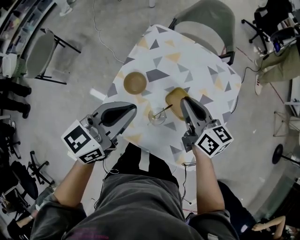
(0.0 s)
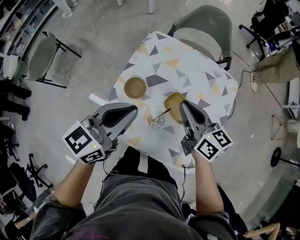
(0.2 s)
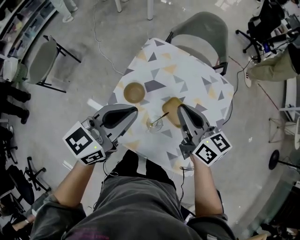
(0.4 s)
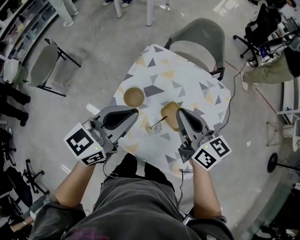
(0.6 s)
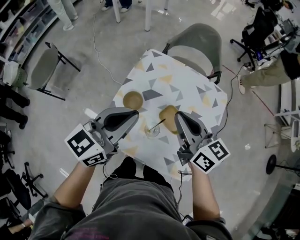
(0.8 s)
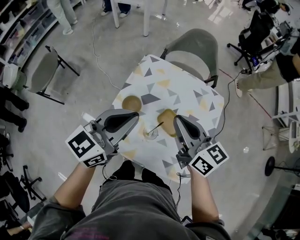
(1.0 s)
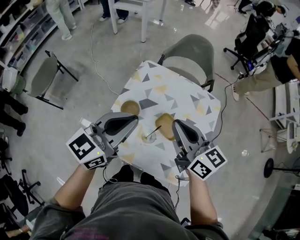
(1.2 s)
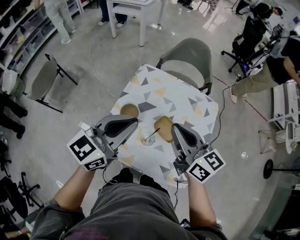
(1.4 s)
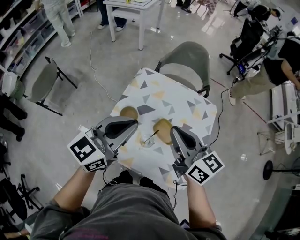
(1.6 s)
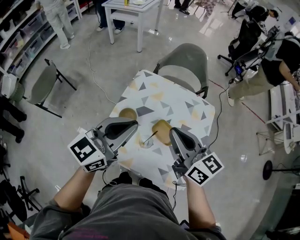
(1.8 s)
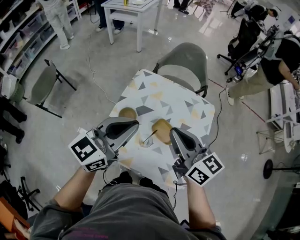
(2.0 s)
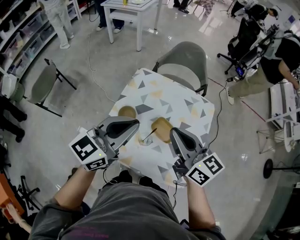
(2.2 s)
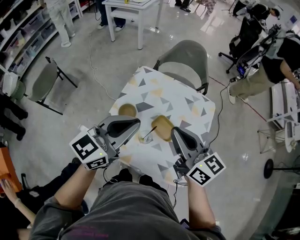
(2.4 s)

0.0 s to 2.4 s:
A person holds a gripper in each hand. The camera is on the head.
0.0 to 1.2 s: The two grippers go about 15 cm upward.
1.2 to 2.4 s: The right gripper moves about 5 cm.

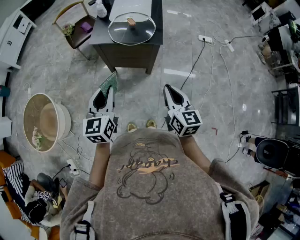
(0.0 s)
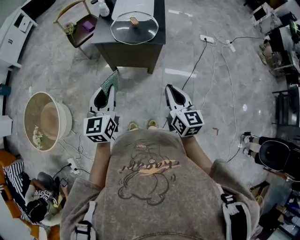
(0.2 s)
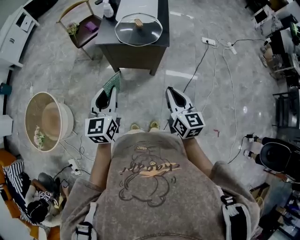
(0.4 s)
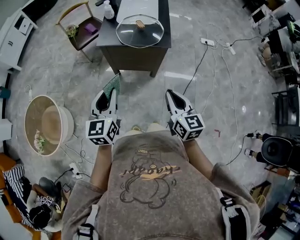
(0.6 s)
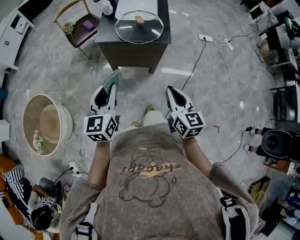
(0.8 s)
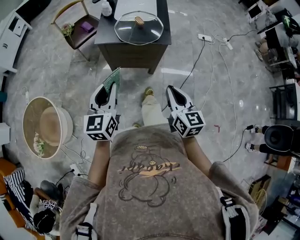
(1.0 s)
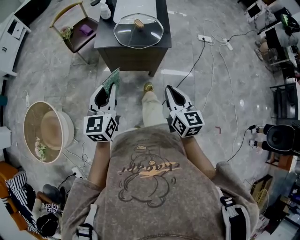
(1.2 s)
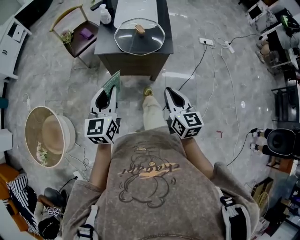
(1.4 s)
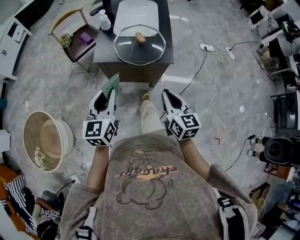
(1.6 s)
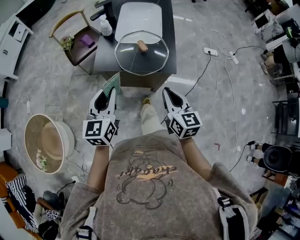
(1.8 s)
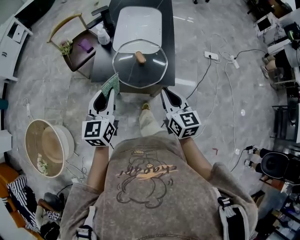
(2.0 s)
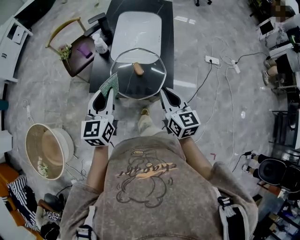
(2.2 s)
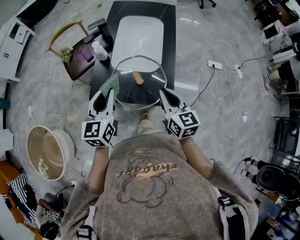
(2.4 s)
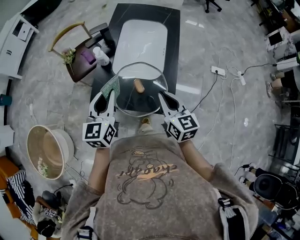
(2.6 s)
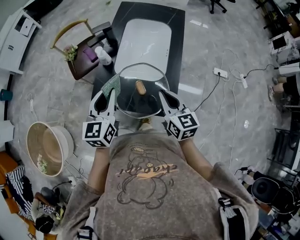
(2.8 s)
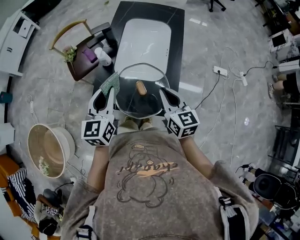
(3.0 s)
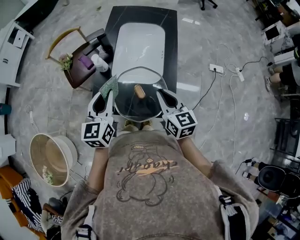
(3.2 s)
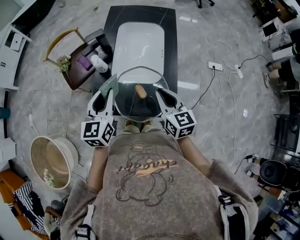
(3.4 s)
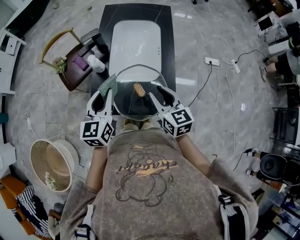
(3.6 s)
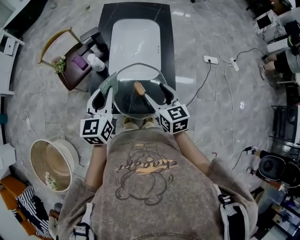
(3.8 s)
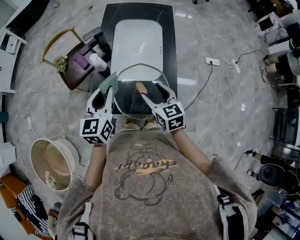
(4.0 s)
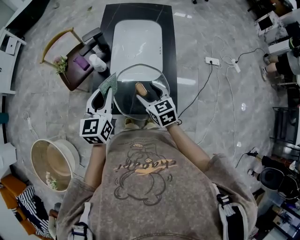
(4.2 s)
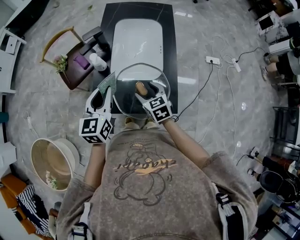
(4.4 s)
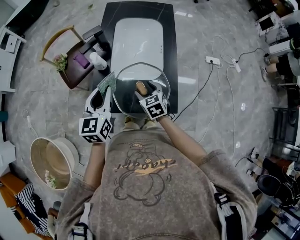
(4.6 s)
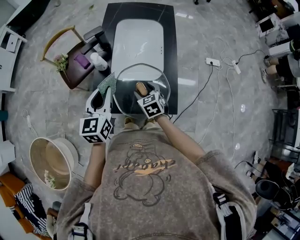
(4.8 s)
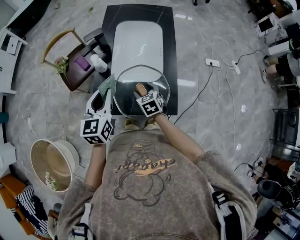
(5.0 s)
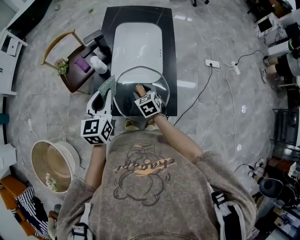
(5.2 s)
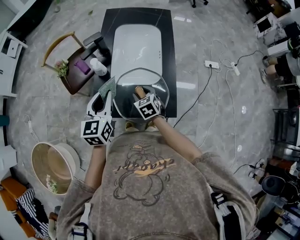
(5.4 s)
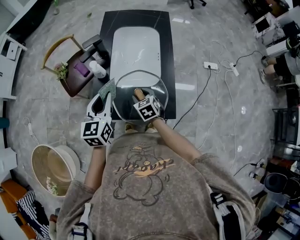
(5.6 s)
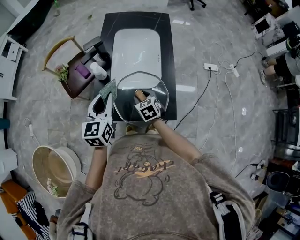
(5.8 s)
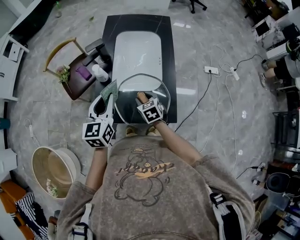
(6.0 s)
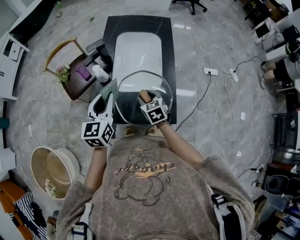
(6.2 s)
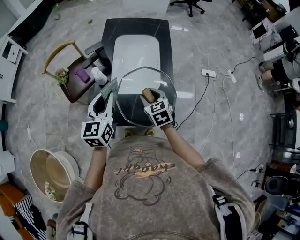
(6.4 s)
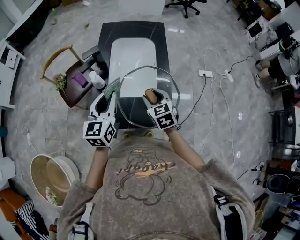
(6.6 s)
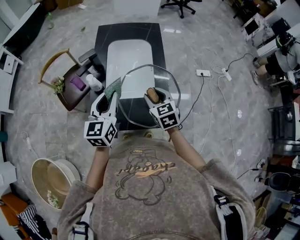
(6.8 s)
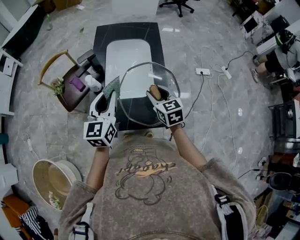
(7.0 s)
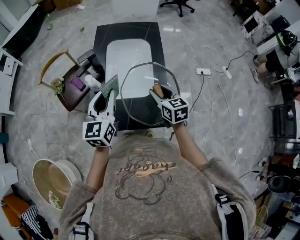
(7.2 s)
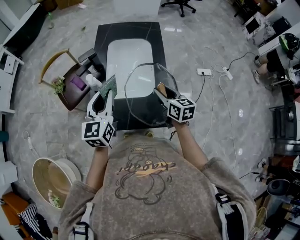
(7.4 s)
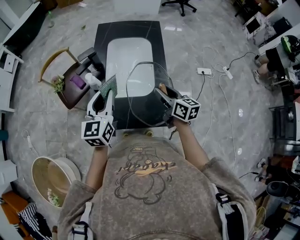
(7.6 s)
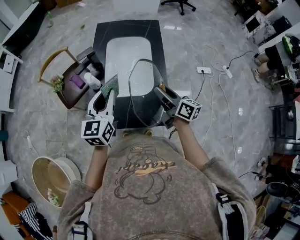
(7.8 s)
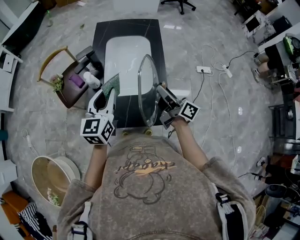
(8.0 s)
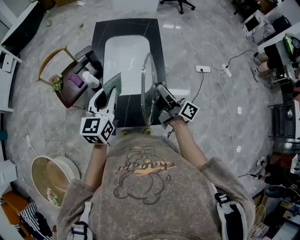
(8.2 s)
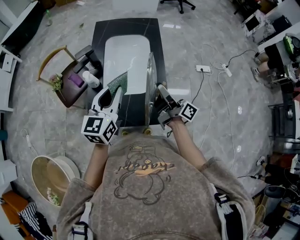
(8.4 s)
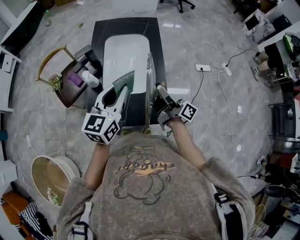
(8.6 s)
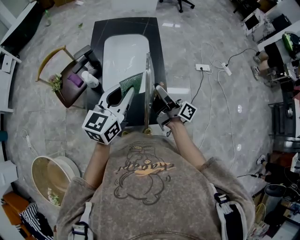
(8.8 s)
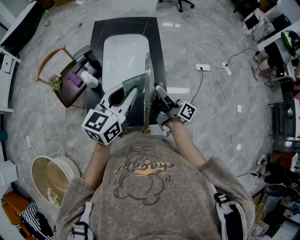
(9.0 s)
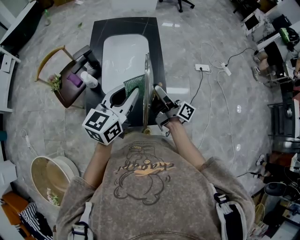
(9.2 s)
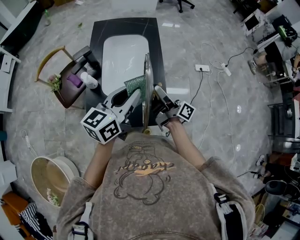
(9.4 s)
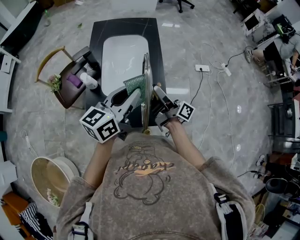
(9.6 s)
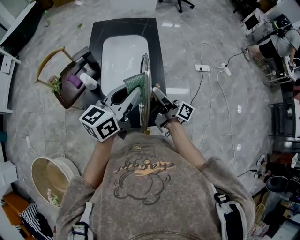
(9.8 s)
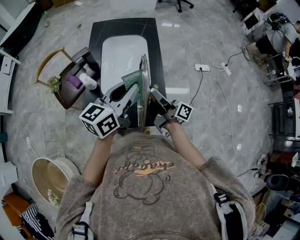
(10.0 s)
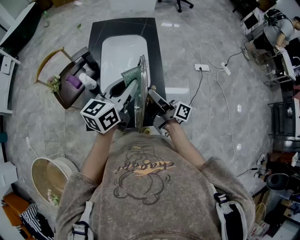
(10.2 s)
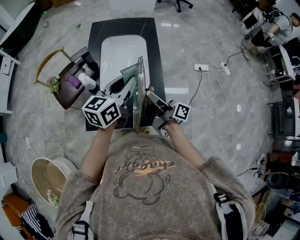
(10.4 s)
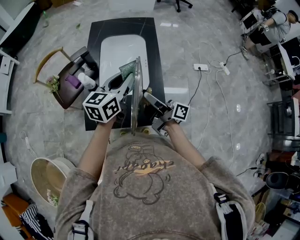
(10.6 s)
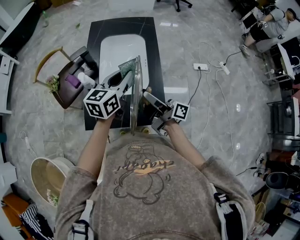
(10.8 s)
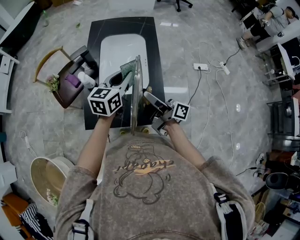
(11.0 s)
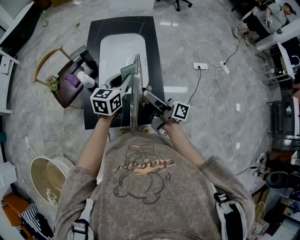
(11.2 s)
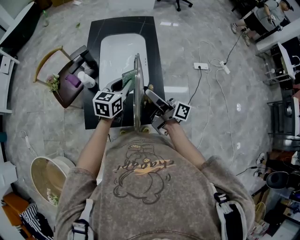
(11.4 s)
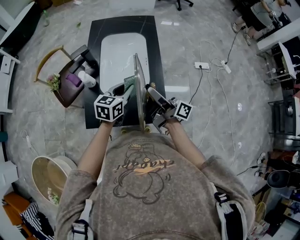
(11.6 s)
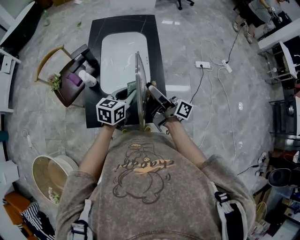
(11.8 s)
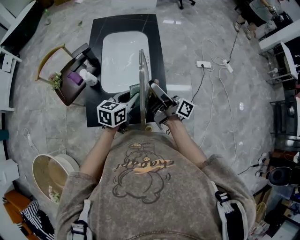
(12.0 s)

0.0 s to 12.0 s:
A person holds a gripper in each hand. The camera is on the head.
0.0 to 1.6 s: The left gripper heads forward, covering some 15 cm, while the right gripper is displaced forward and to the left by some 15 cm.
1.6 to 3.0 s: The two grippers go approximately 30 cm forward.
3.0 to 4.4 s: The right gripper heads downward and to the left, covering some 15 cm, rotates some 20 degrees, and opens up.
4.4 to 6.0 s: The right gripper changes place by approximately 5 cm, and closes.
6.0 to 7.6 s: The left gripper moves about 5 cm, while the right gripper shifts approximately 20 cm upward and to the right, and tips its fingers upward by approximately 30 degrees.
7.6 to 9.0 s: The left gripper shifts roughly 10 cm to the right, and swivels some 30 degrees. The right gripper tilts its fingers approximately 30 degrees upward.
9.0 to 10.4 s: The left gripper shifts roughly 5 cm forward.
10.4 to 12.0 s: The left gripper goes about 15 cm downward.

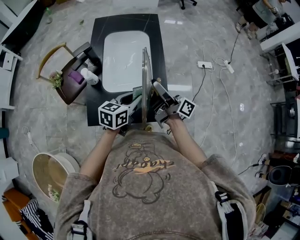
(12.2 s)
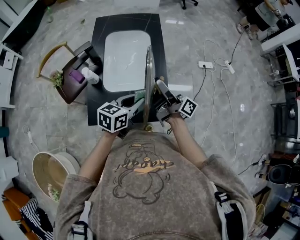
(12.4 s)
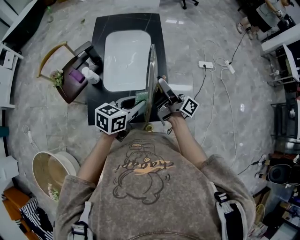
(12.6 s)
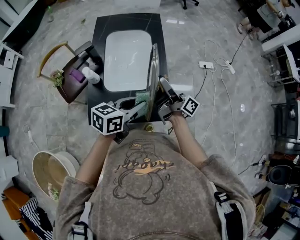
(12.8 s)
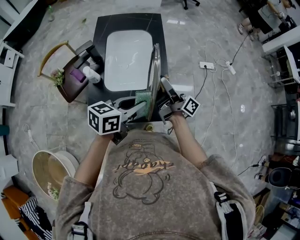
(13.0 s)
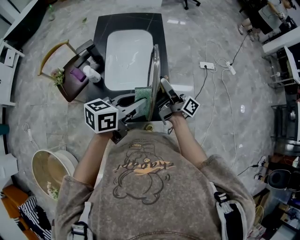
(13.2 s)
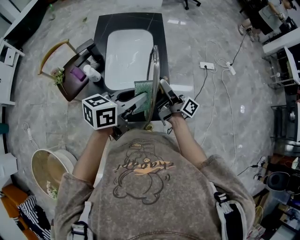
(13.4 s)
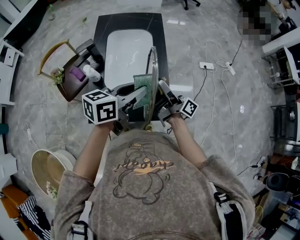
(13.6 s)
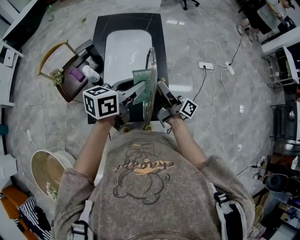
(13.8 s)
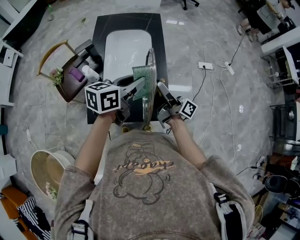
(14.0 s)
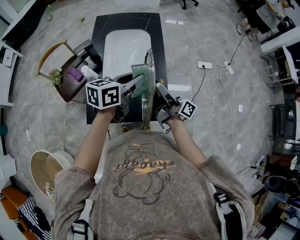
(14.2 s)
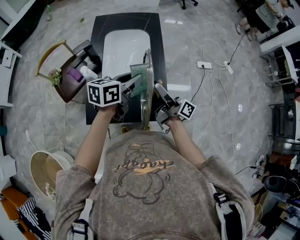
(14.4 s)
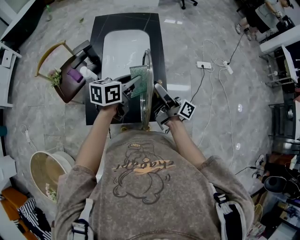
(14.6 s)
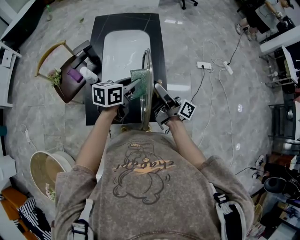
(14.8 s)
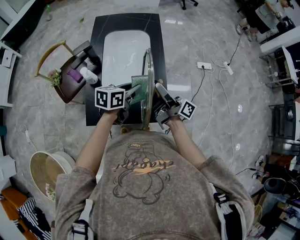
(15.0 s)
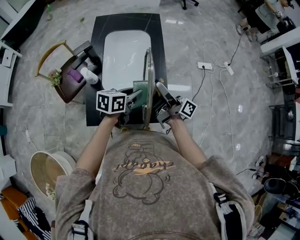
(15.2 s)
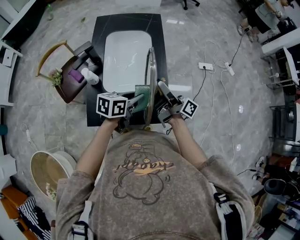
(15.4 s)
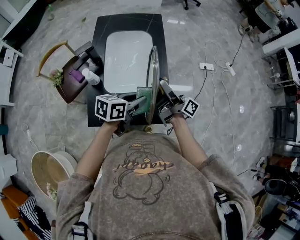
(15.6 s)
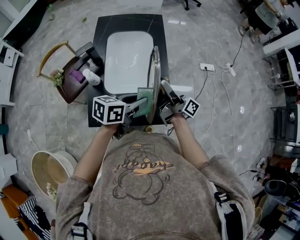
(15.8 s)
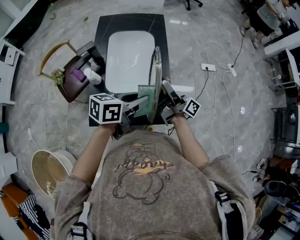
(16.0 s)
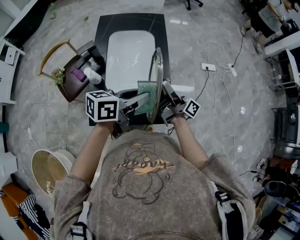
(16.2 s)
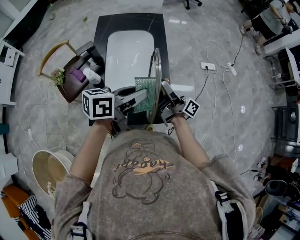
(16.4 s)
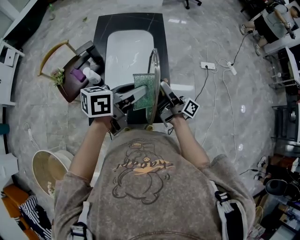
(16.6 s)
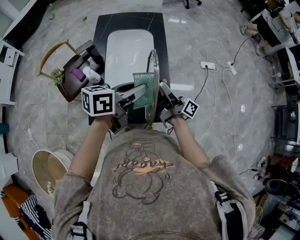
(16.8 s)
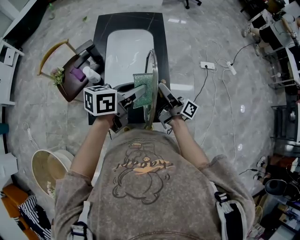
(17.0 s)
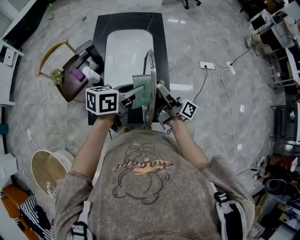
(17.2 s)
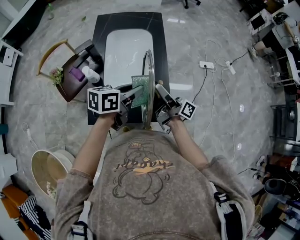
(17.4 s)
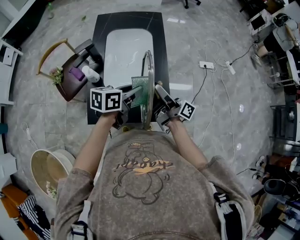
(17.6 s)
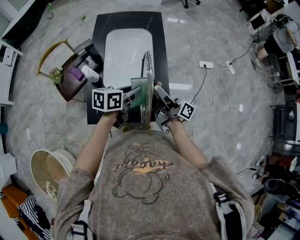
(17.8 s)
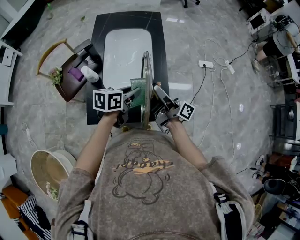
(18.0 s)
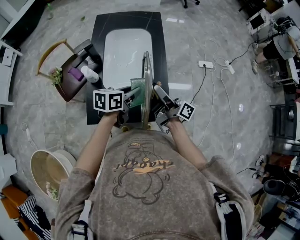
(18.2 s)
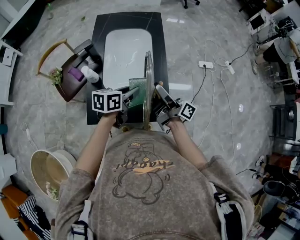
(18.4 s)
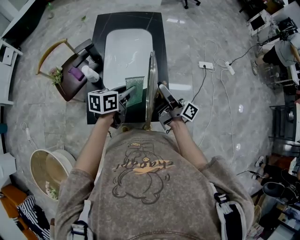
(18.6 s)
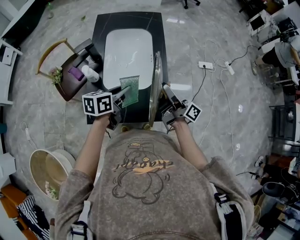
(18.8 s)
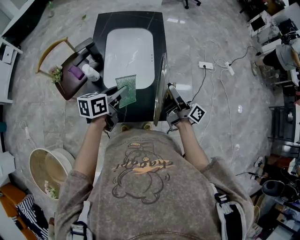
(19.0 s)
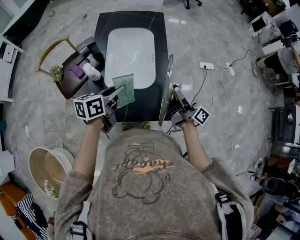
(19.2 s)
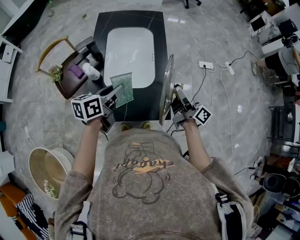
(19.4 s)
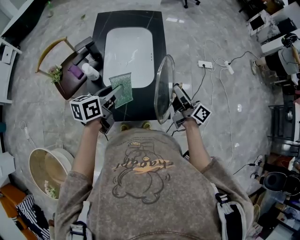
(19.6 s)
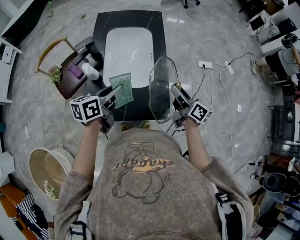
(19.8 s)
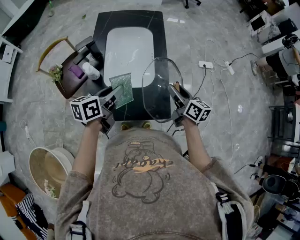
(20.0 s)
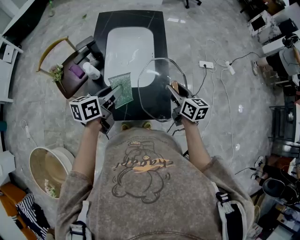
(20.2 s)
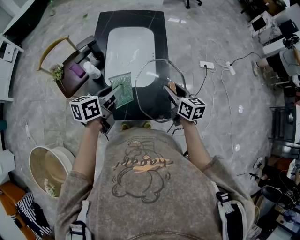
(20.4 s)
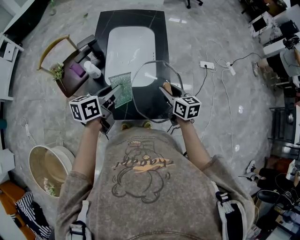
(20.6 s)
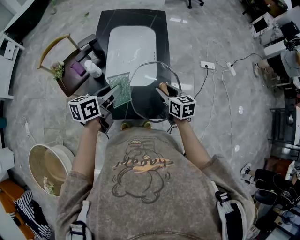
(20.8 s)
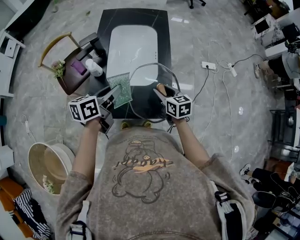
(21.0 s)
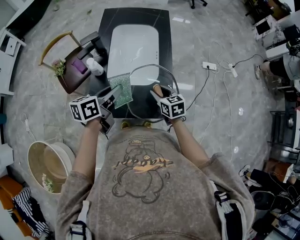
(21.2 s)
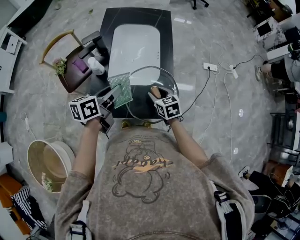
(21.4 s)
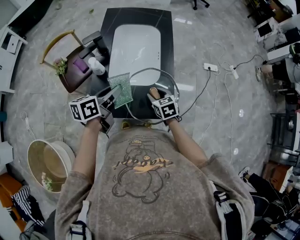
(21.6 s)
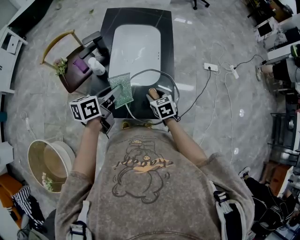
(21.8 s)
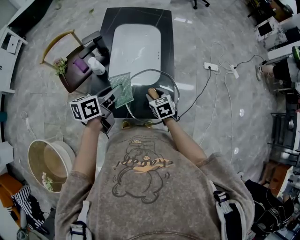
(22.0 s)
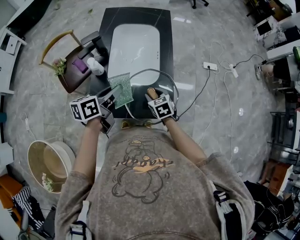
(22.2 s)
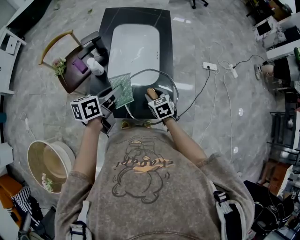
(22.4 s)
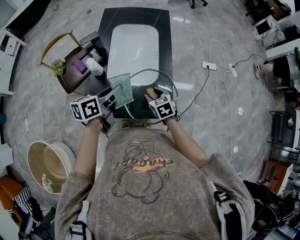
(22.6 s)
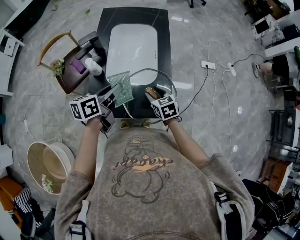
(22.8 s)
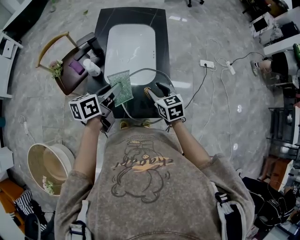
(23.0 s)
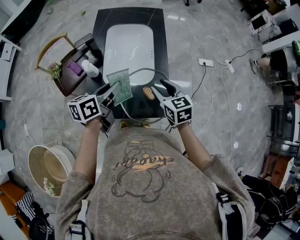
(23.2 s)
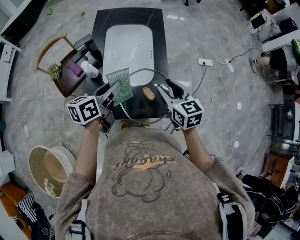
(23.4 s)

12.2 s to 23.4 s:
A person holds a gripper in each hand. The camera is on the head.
12.2 to 13.8 s: The left gripper shifts approximately 10 cm upward.
13.8 to 15.4 s: The left gripper travels downward by about 15 cm.
15.4 to 17.0 s: The left gripper travels upward by approximately 10 cm.
17.0 to 18.6 s: The left gripper travels downward by about 10 cm.
18.6 to 20.2 s: The left gripper goes roughly 10 cm to the left and upward; the right gripper tips its fingers downward by some 40 degrees.
20.2 to 21.8 s: The right gripper heads downward and to the left, covering some 15 cm, and swivels about 40 degrees.
21.8 to 23.4 s: The right gripper travels upward by some 20 cm, and changes its angle by approximately 20 degrees.
